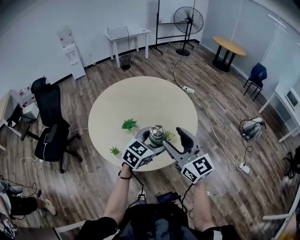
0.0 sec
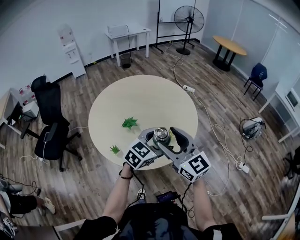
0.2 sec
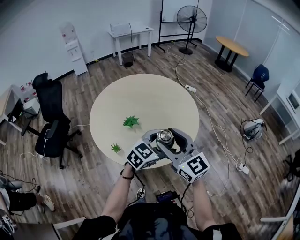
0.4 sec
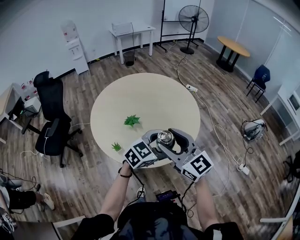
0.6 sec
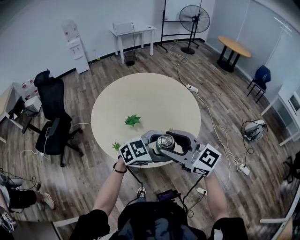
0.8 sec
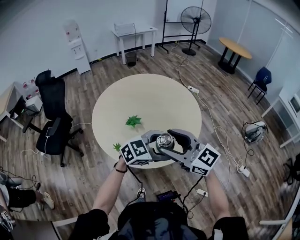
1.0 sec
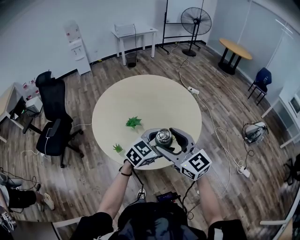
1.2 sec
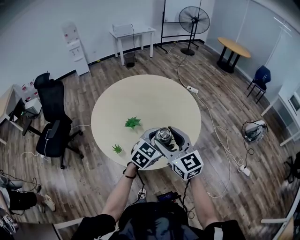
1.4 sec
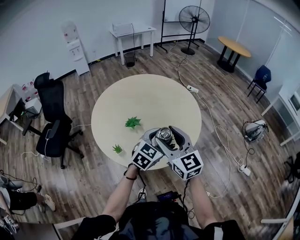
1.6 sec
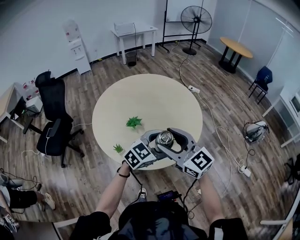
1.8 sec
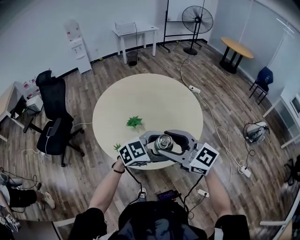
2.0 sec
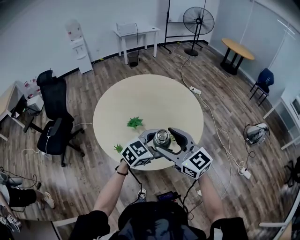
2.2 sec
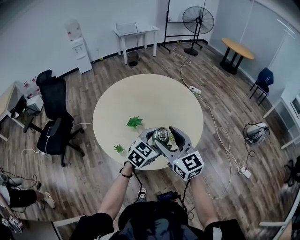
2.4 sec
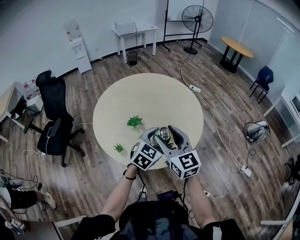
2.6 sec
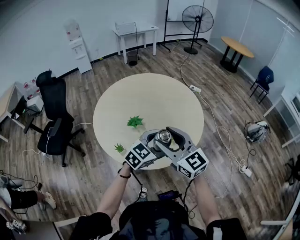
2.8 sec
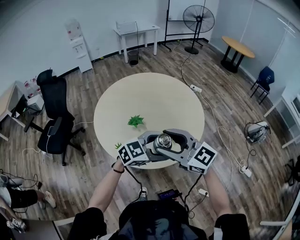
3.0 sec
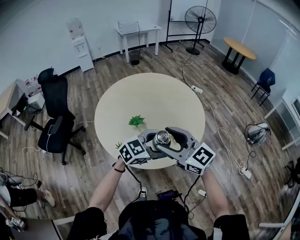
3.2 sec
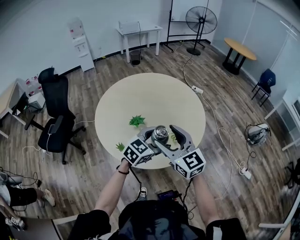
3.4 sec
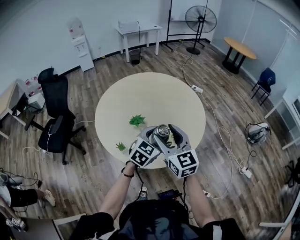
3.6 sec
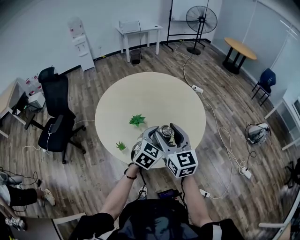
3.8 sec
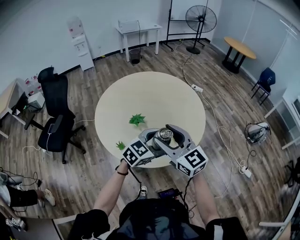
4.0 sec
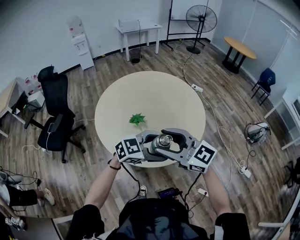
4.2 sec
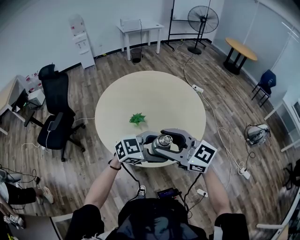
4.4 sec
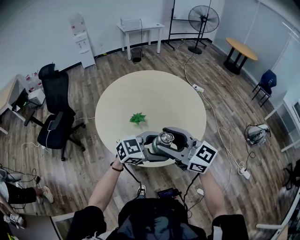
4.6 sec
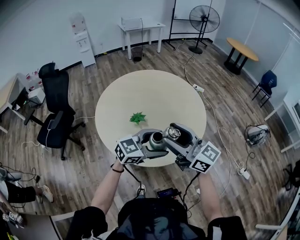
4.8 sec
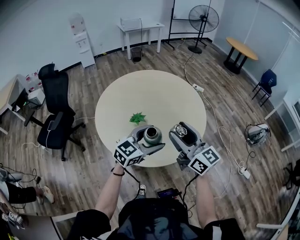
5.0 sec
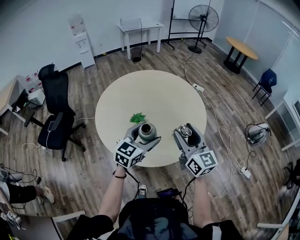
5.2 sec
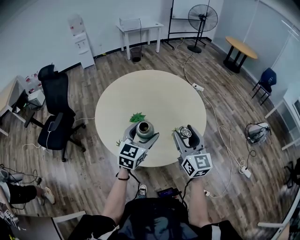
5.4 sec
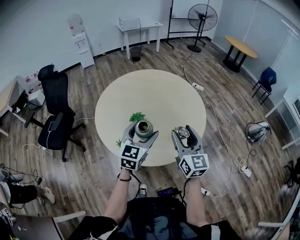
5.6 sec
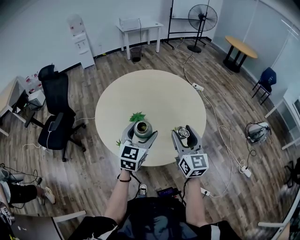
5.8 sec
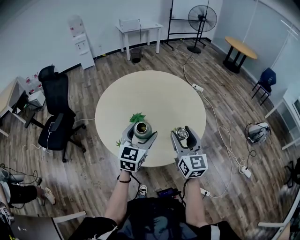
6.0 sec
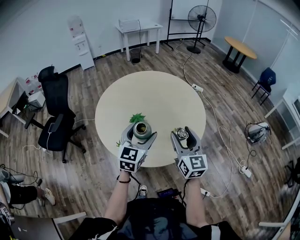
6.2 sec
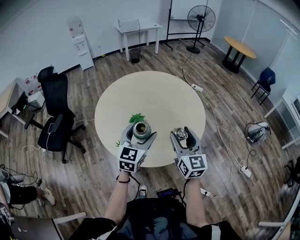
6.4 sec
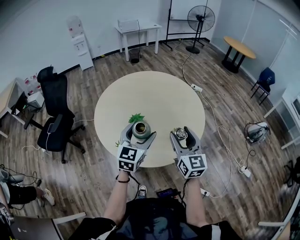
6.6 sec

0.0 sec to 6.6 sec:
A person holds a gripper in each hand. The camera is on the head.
0.0 sec to 1.6 sec: The right gripper moves about 5 cm.
1.6 sec to 3.2 sec: The right gripper changes its angle by some 20 degrees. Meanwhile the left gripper swivels roughly 20 degrees.
3.2 sec to 5.0 sec: The left gripper ends up approximately 5 cm from where it was. Meanwhile the right gripper ends up about 5 cm from where it was, and rotates approximately 20 degrees.
5.0 sec to 6.6 sec: The right gripper is displaced downward by approximately 5 cm, and swivels roughly 30 degrees. The left gripper is displaced to the left by about 5 cm, and turns by about 30 degrees.

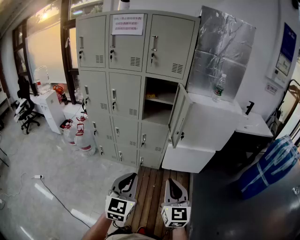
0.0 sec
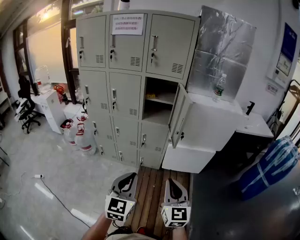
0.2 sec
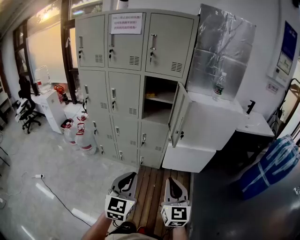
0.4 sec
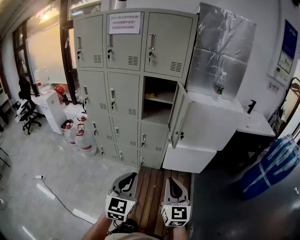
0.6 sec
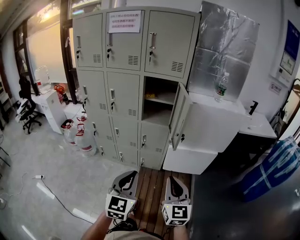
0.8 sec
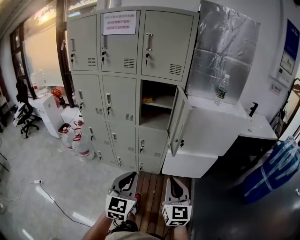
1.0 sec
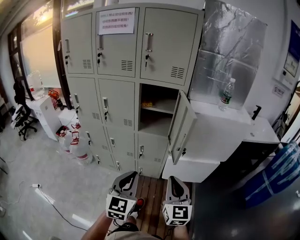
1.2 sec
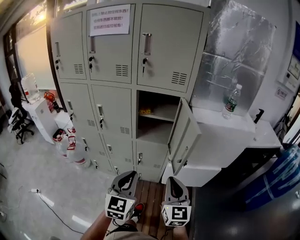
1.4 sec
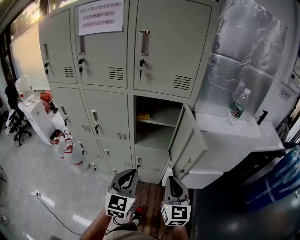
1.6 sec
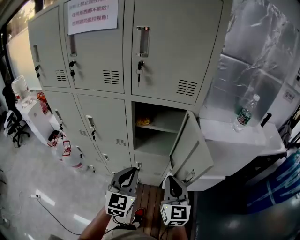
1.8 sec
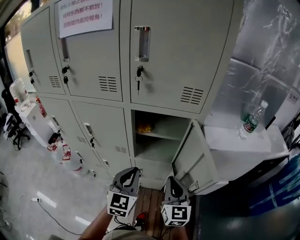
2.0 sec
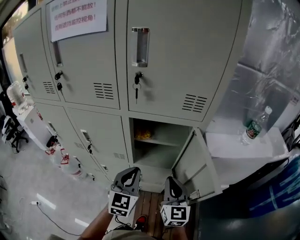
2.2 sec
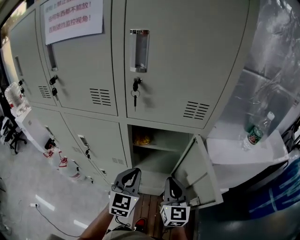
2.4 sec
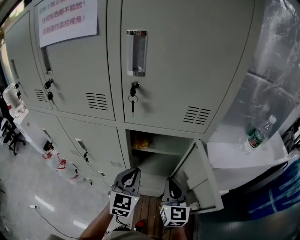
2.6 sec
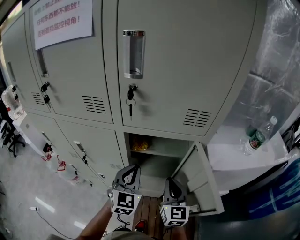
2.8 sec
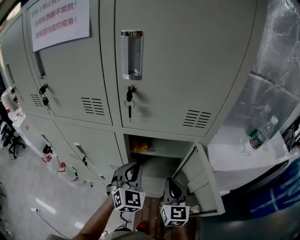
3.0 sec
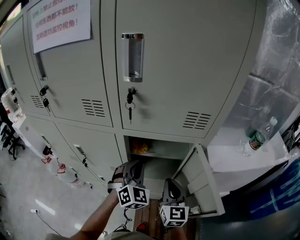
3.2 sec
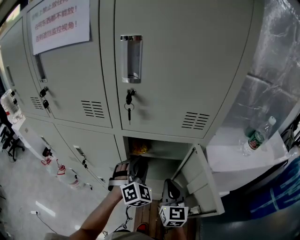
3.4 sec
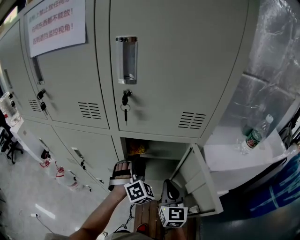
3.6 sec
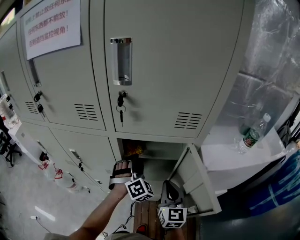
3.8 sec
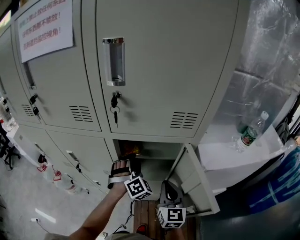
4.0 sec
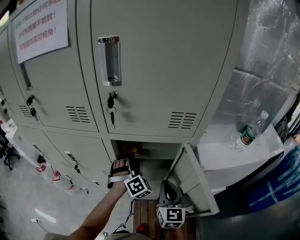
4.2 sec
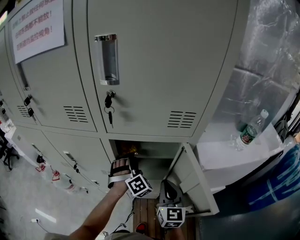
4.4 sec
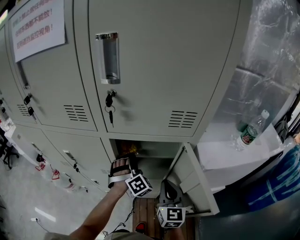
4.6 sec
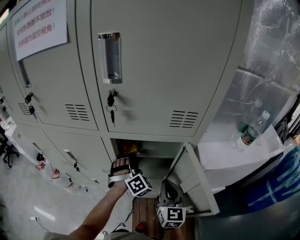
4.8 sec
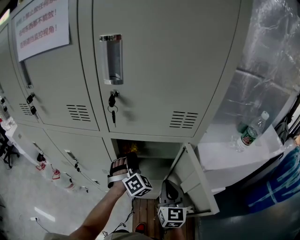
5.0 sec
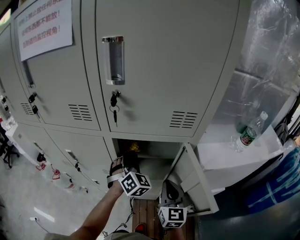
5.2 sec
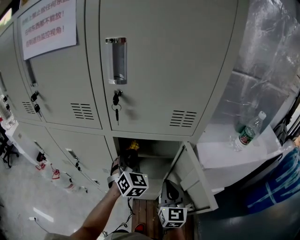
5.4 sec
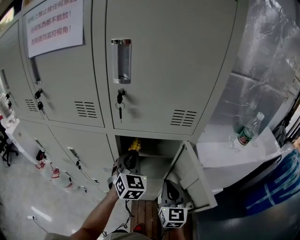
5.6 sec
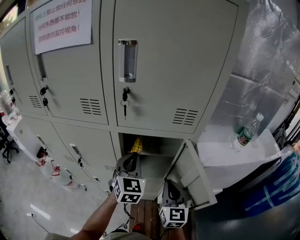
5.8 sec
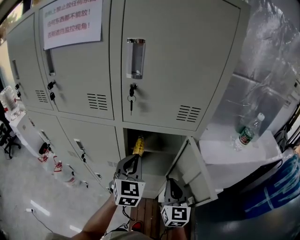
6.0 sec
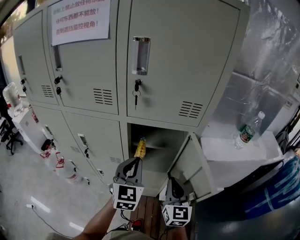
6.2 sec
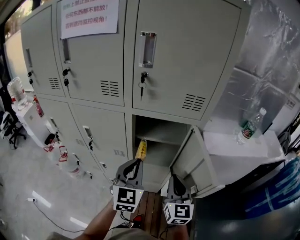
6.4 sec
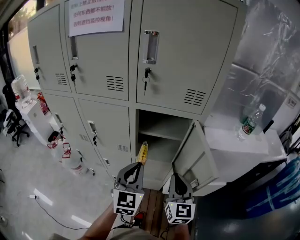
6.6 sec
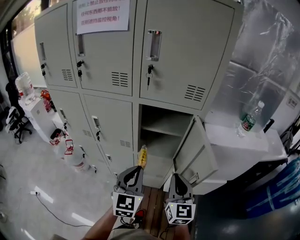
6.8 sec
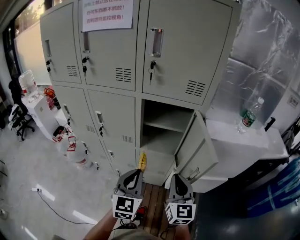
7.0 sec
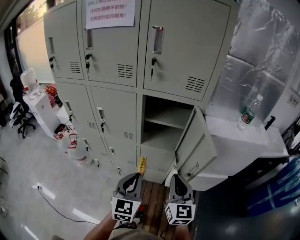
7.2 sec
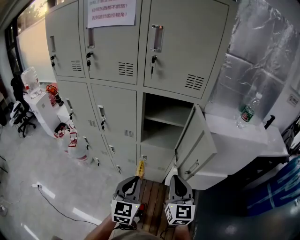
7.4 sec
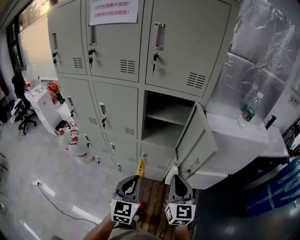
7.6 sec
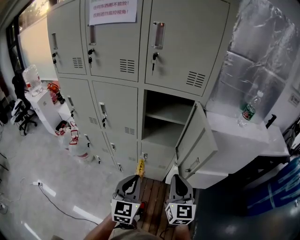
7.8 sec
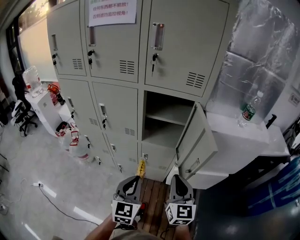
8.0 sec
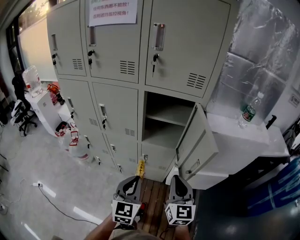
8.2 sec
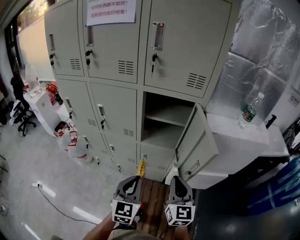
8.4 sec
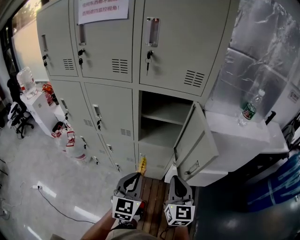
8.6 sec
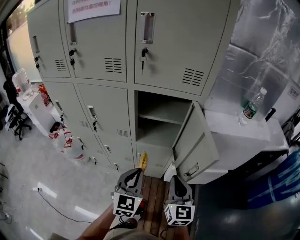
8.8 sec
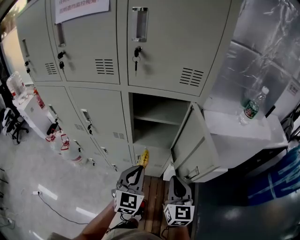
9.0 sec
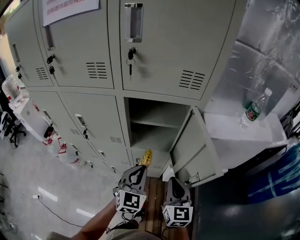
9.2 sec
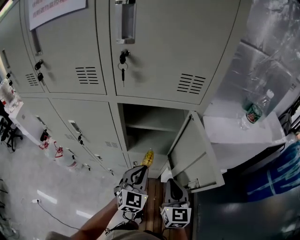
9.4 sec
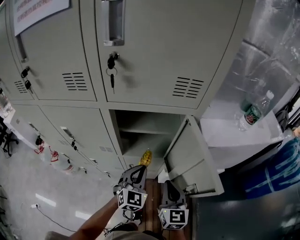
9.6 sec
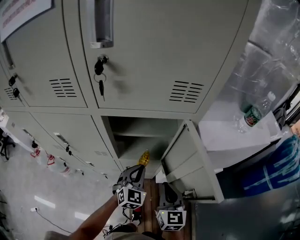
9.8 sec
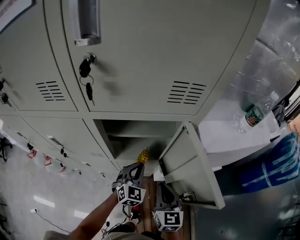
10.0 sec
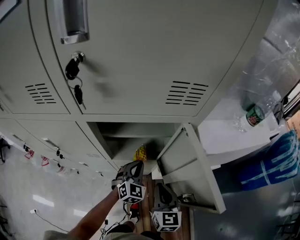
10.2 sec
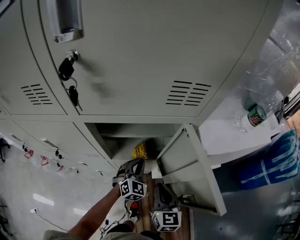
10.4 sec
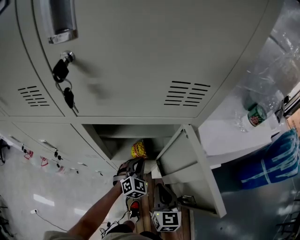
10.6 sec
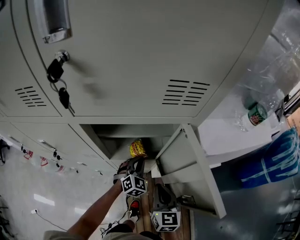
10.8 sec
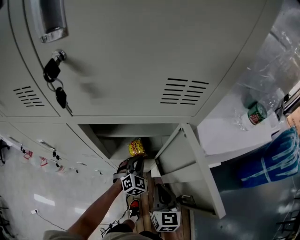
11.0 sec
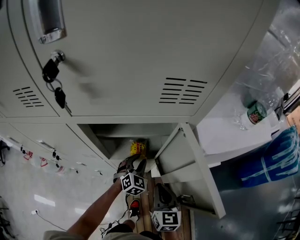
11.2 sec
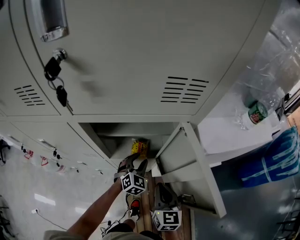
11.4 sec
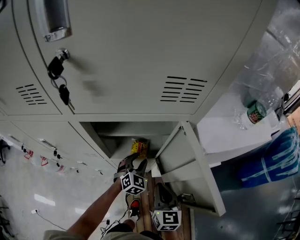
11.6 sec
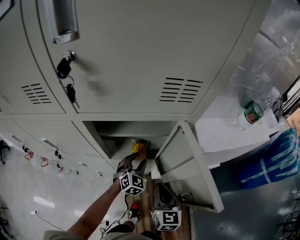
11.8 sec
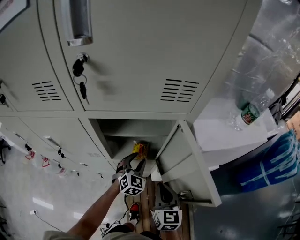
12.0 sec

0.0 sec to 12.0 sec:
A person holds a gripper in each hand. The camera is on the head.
0.0 sec to 1.6 sec: Both grippers travel together forward, about 30 cm.
1.6 sec to 3.0 sec: The grippers both shift forward by approximately 25 cm. The left gripper changes its angle by roughly 20 degrees.
3.0 sec to 4.4 sec: The left gripper heads forward and downward, covering approximately 10 cm, rotates roughly 40 degrees, and opens up.
4.4 sec to 6.0 sec: The right gripper changes place by approximately 5 cm; the left gripper shifts about 15 cm upward and backward, rolls counterclockwise, seen from behind, by approximately 50 degrees, and closes up.
6.0 sec to 7.6 sec: The right gripper travels backward by approximately 15 cm. Meanwhile the left gripper goes approximately 25 cm backward.
7.6 sec to 9.0 sec: The left gripper shifts about 10 cm forward, while the right gripper goes roughly 5 cm forward.
9.0 sec to 10.4 sec: The left gripper heads forward and downward, covering some 25 cm, and rotates roughly 20 degrees. Meanwhile the right gripper shifts approximately 10 cm forward and downward.
10.4 sec to 12.0 sec: The left gripper opens.

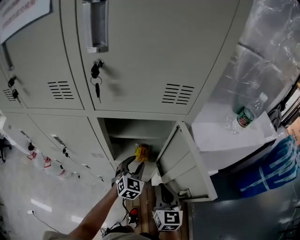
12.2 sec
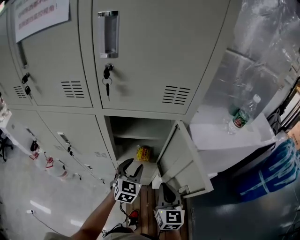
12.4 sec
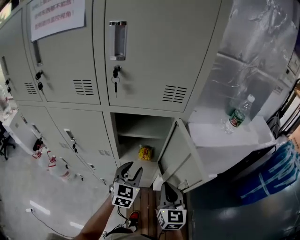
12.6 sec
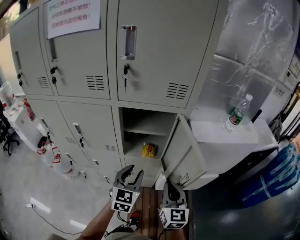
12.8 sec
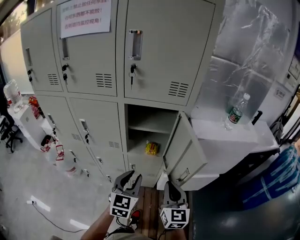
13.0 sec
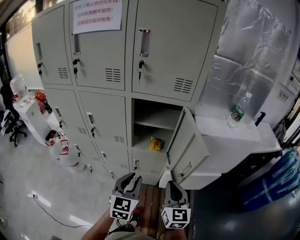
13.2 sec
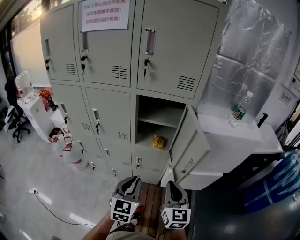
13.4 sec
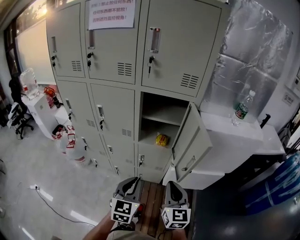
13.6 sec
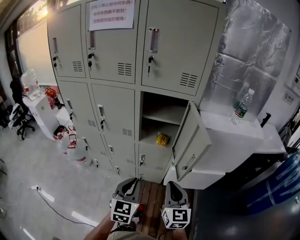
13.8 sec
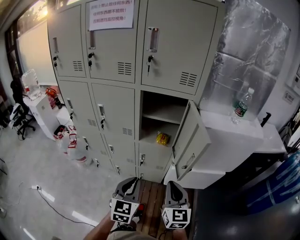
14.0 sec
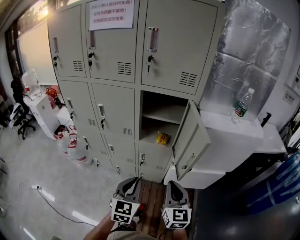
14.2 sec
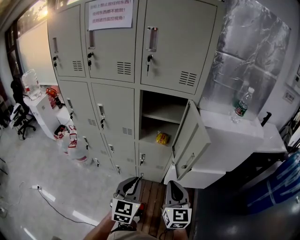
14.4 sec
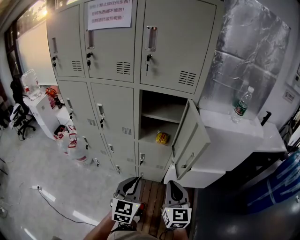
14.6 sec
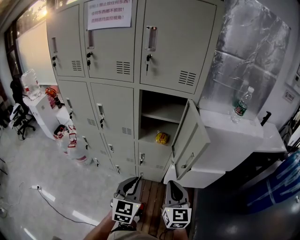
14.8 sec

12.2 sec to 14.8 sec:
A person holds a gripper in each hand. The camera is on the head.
12.2 sec to 13.4 sec: The left gripper goes approximately 30 cm backward, swivels some 20 degrees, and closes. Meanwhile the right gripper shifts roughly 15 cm backward and upward.
13.4 sec to 14.8 sec: There are only small adjustments of the grippers.

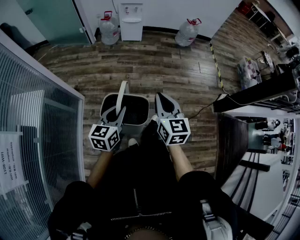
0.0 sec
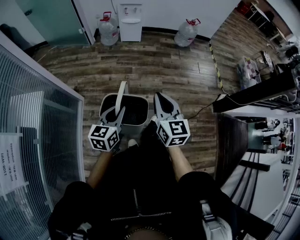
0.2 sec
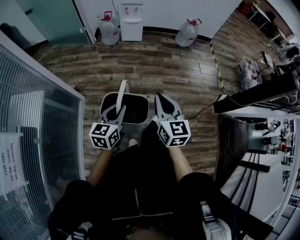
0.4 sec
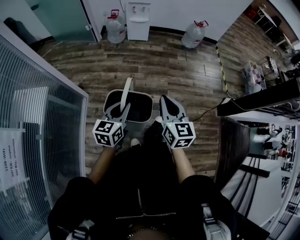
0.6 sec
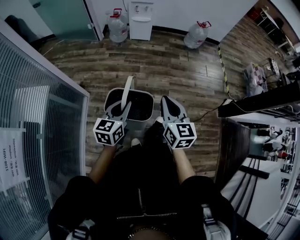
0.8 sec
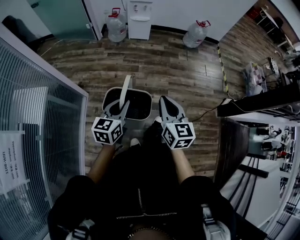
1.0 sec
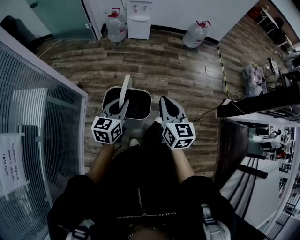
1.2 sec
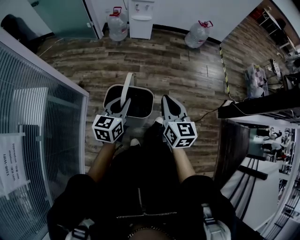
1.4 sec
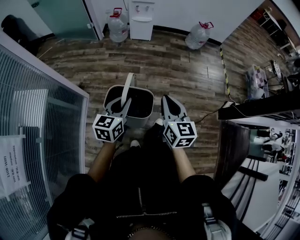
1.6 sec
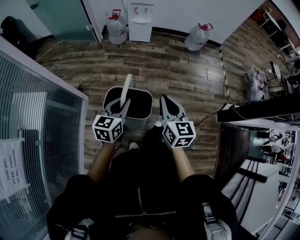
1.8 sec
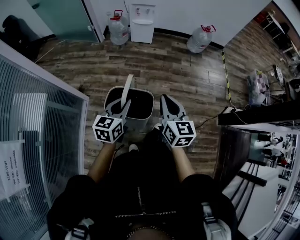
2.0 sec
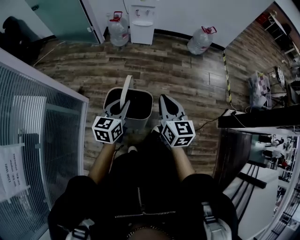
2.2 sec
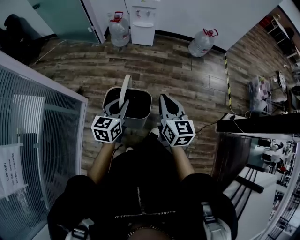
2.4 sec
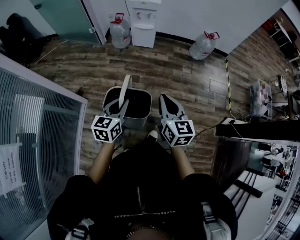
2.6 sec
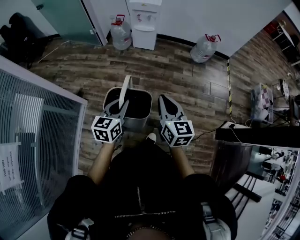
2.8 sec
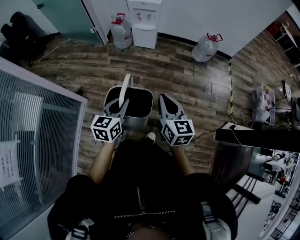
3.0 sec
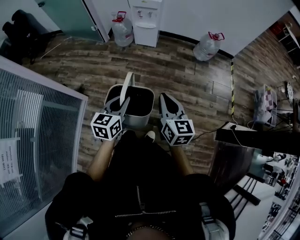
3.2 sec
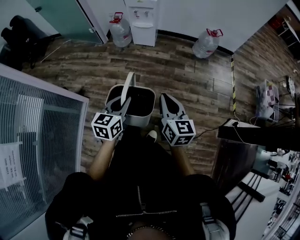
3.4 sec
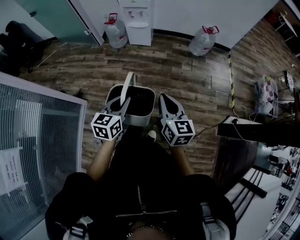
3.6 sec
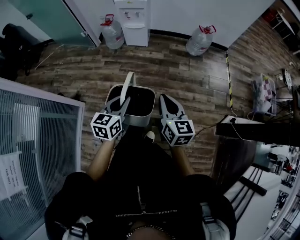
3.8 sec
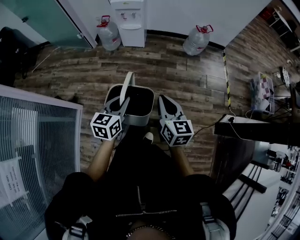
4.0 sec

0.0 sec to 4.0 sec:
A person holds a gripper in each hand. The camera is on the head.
0.0 sec to 1.4 sec: The left gripper heads forward, covering some 5 cm.
1.4 sec to 2.6 sec: The left gripper travels forward and to the right by some 15 cm, while the right gripper moves forward, some 15 cm.
2.6 sec to 4.0 sec: The two grippers go some 10 cm to the right and forward.
